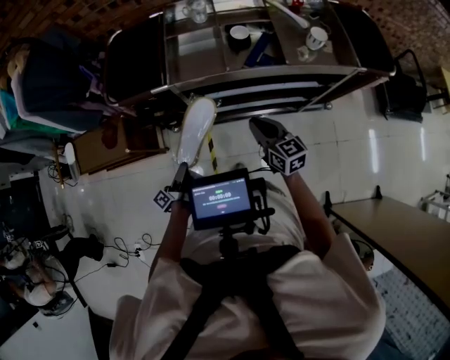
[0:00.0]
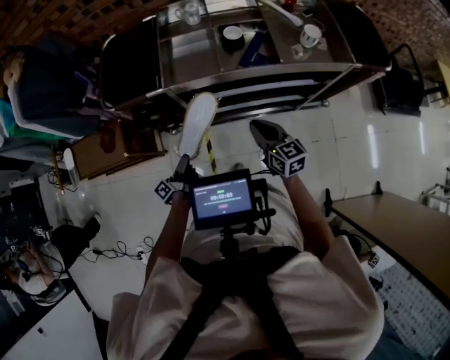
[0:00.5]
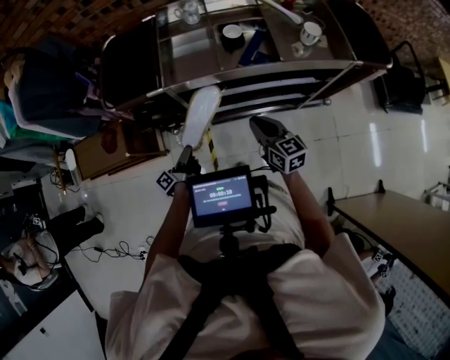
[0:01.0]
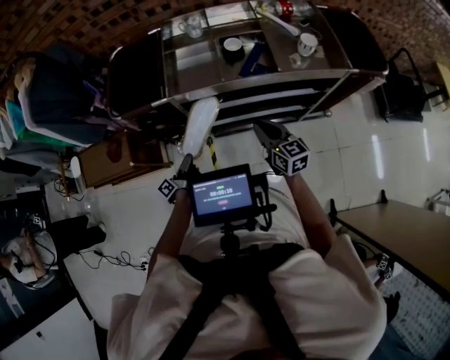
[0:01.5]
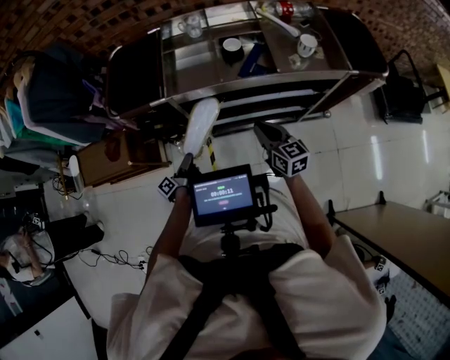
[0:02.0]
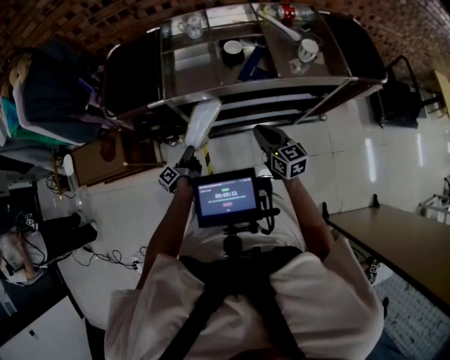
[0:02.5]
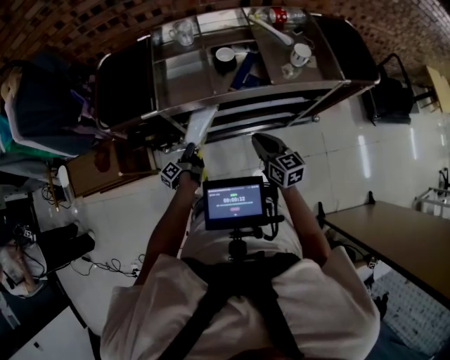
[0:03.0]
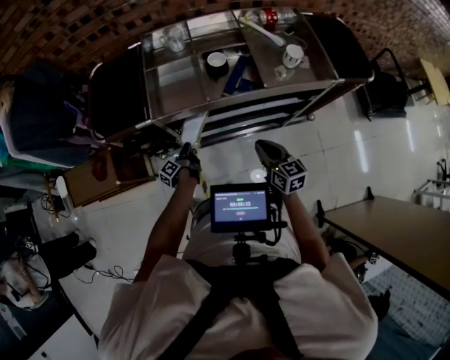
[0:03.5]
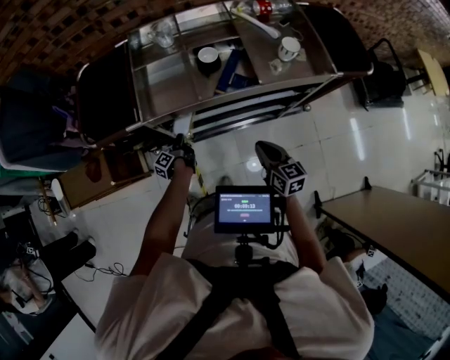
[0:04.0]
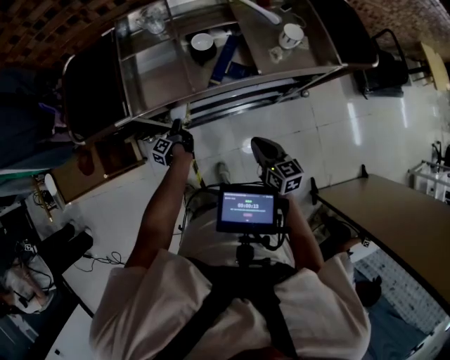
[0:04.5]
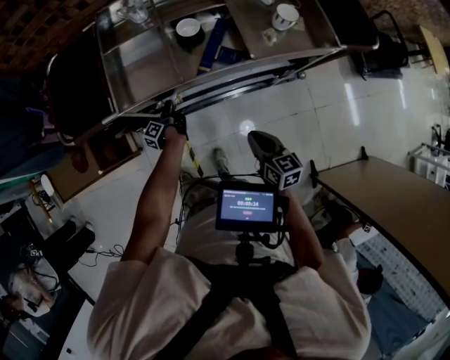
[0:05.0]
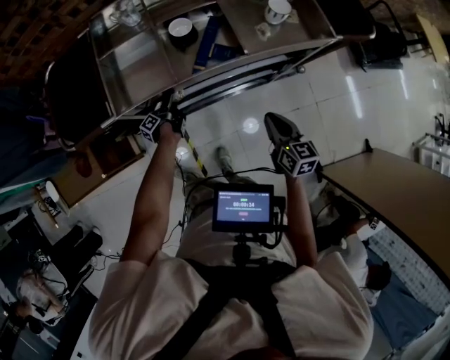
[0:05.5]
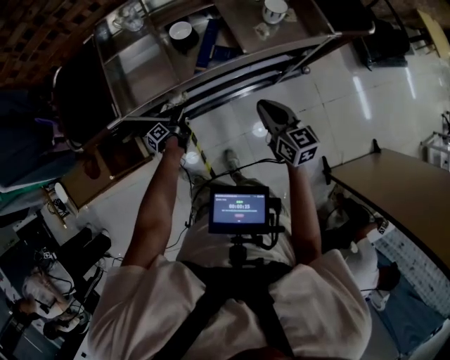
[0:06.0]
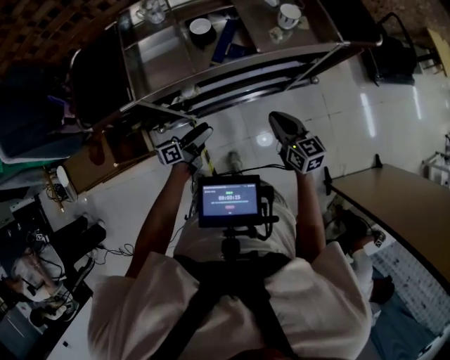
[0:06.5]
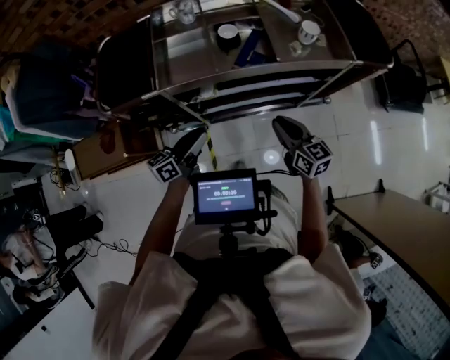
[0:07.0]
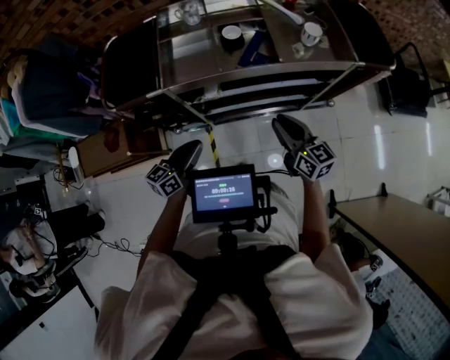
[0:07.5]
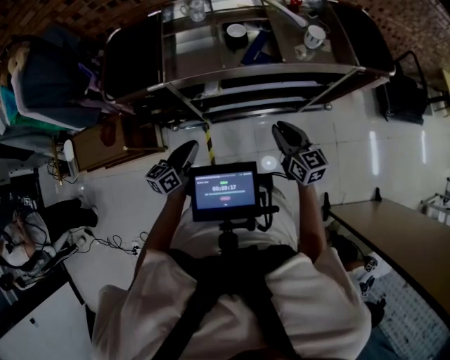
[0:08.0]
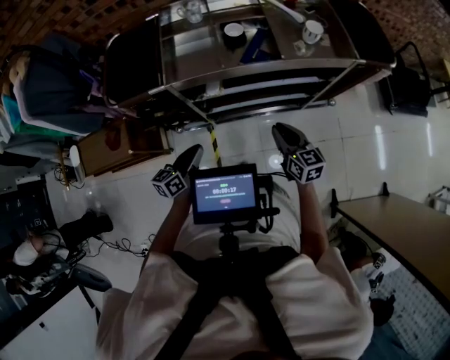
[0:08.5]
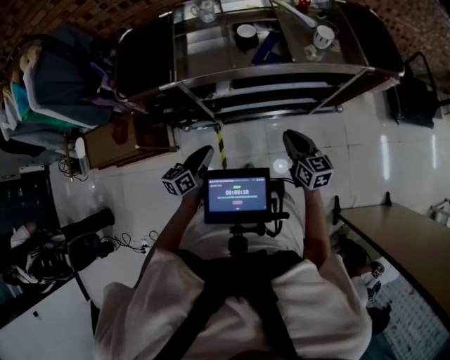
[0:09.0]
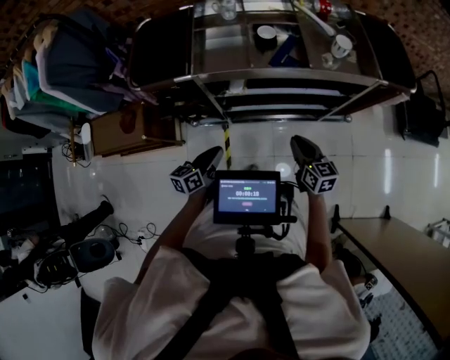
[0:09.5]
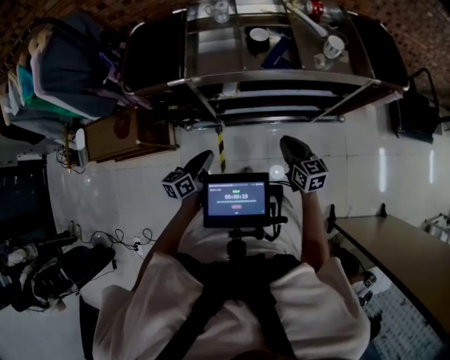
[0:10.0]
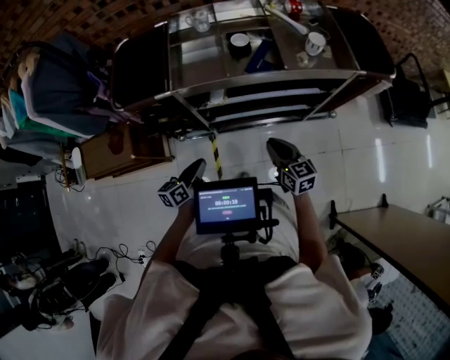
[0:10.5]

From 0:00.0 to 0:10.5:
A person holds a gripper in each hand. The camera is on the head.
From 0:02.0 to 0:04.0: The right gripper ends up approximately 10 cm from where it was.
From 0:06.5 to 0:08.5: The right gripper changes place by about 5 cm.

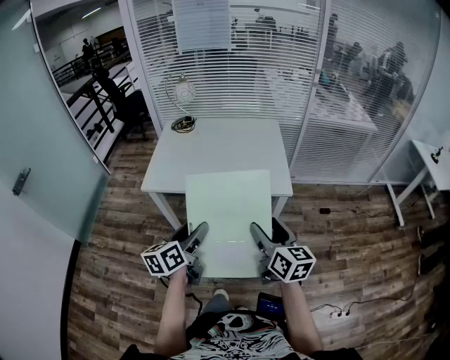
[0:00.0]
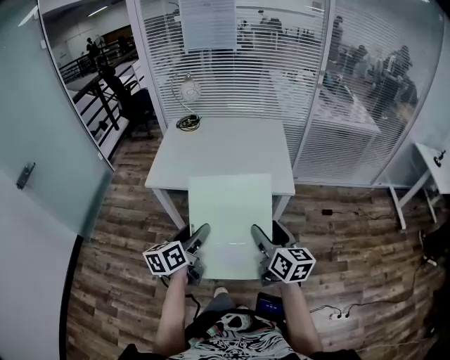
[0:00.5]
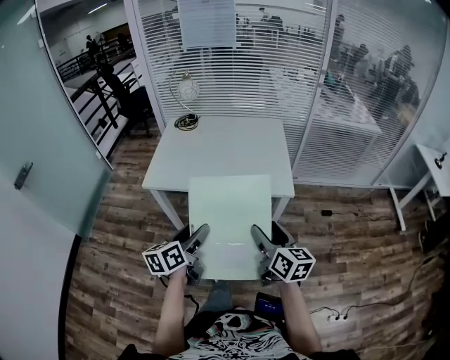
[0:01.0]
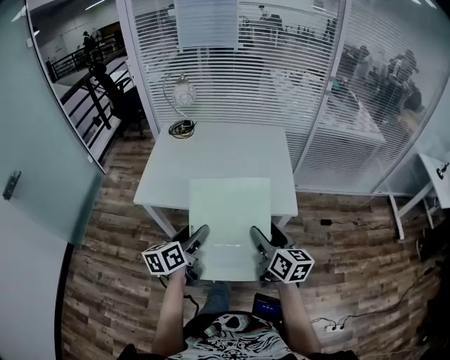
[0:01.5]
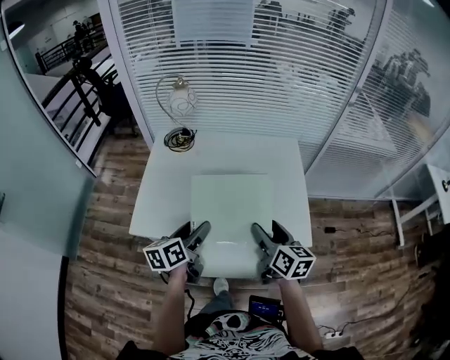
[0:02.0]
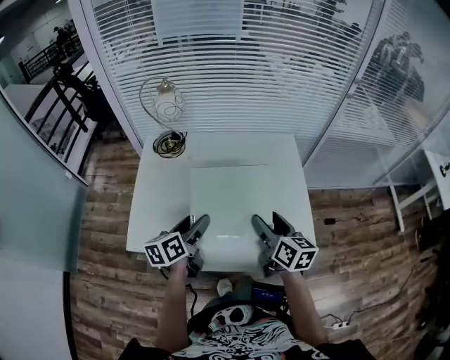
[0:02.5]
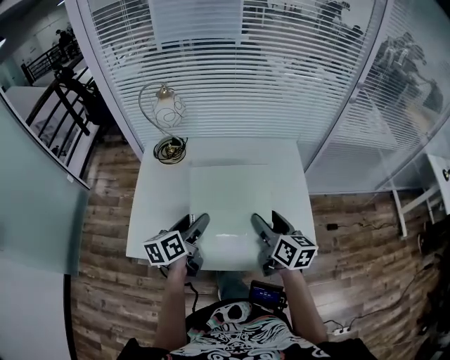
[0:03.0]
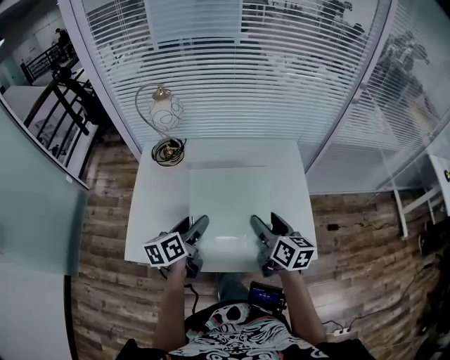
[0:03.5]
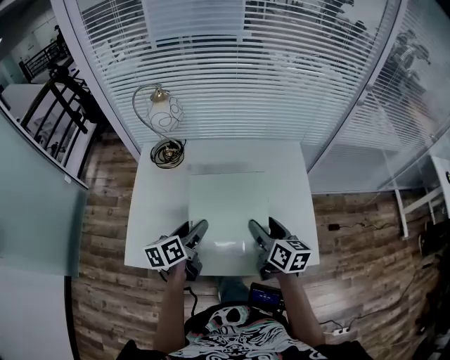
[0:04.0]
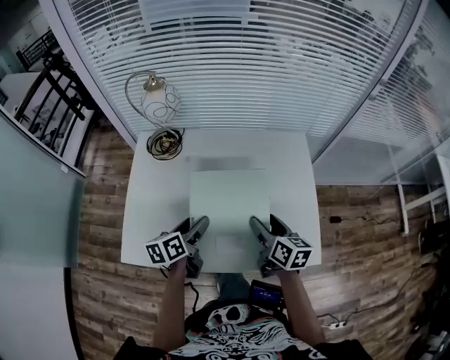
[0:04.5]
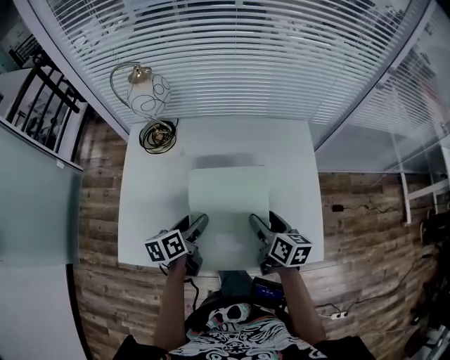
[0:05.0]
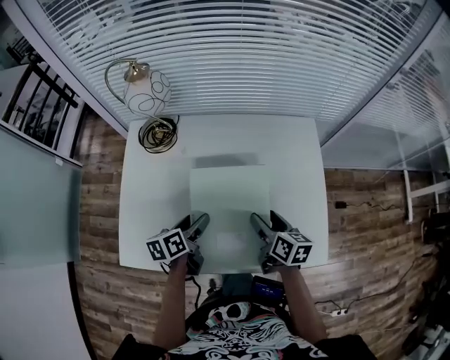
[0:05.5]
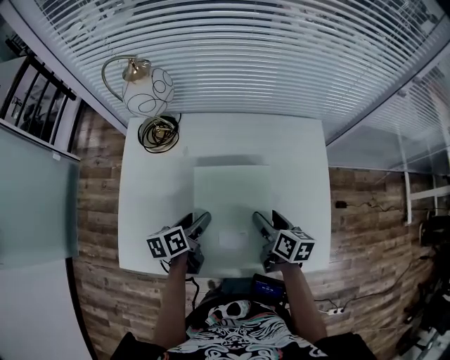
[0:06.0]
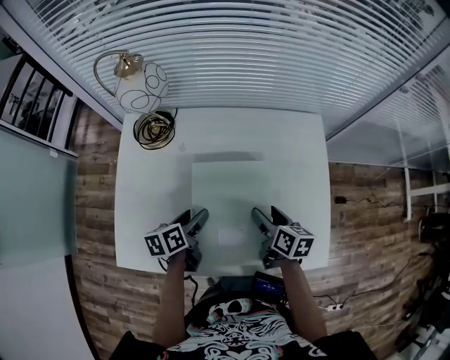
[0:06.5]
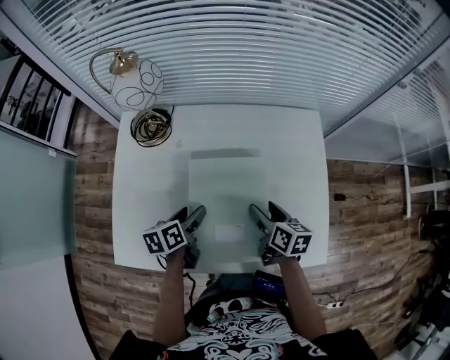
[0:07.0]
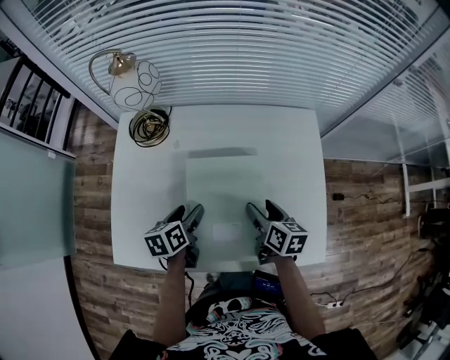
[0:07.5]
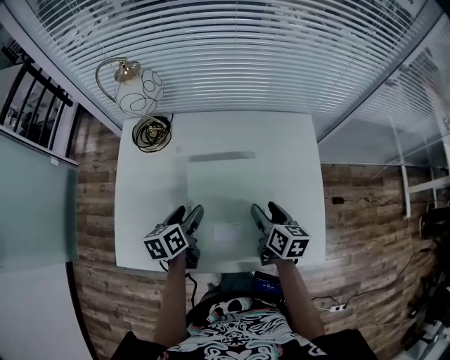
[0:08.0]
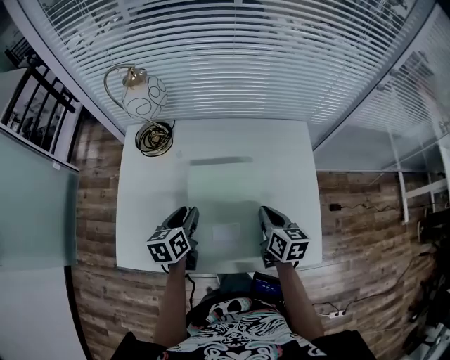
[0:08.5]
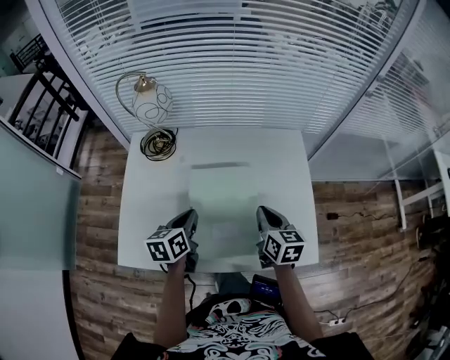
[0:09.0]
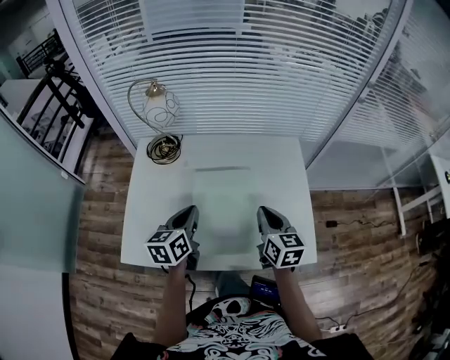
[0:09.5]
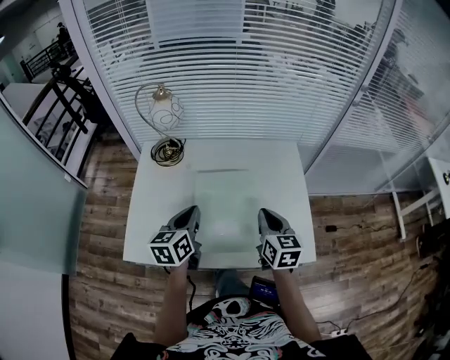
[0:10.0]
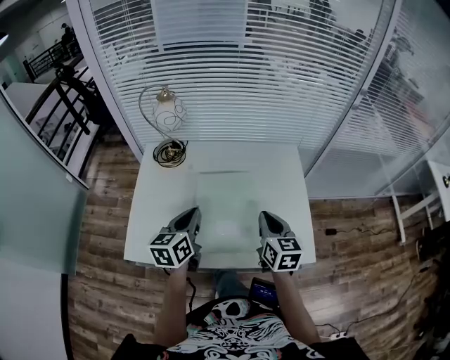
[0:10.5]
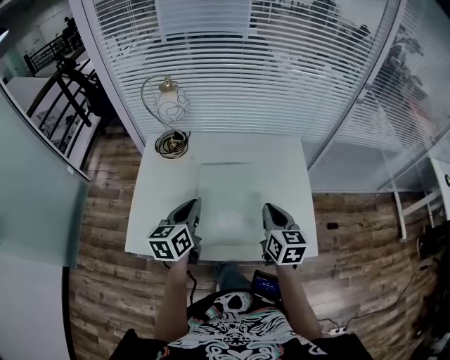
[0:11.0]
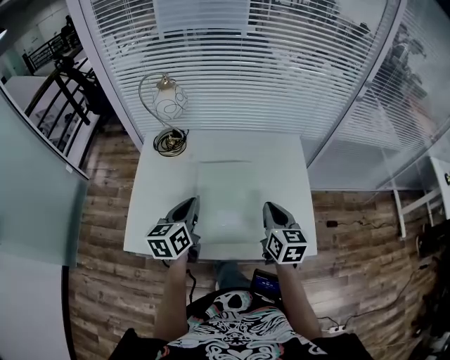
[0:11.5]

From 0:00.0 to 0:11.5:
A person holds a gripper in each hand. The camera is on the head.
From 0:00.0 to 0:02.0: Both grippers travel together forward, approximately 30 cm.
From 0:02.0 to 0:04.0: The grippers both shift forward by some 10 cm.
From 0:04.0 to 0:06.0: Both grippers move downward and forward, approximately 10 cm.
From 0:06.0 to 0:07.5: There are only small adjustments of the grippers.
From 0:07.5 to 0:09.5: Both grippers move upward, roughly 15 cm. The right gripper changes its angle by approximately 30 degrees, and closes up; the left gripper turns by some 20 degrees, and closes.
From 0:09.5 to 0:11.5: The grippers make only small movements.

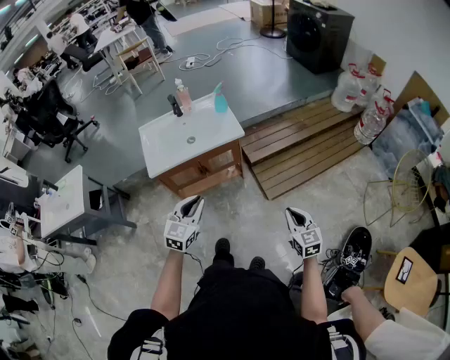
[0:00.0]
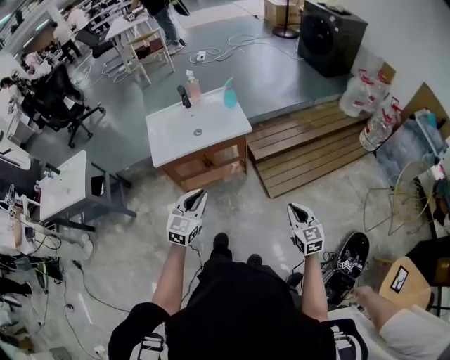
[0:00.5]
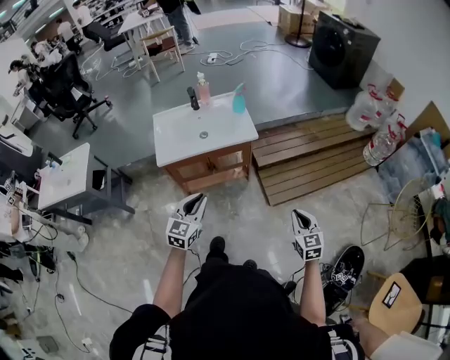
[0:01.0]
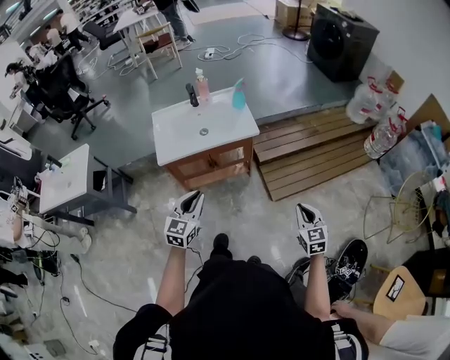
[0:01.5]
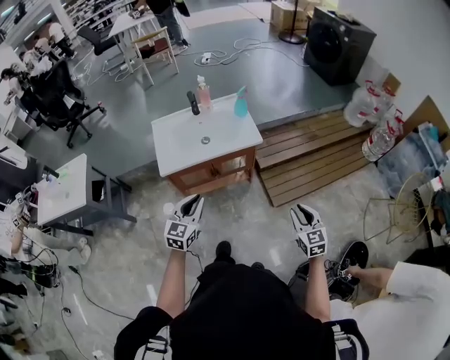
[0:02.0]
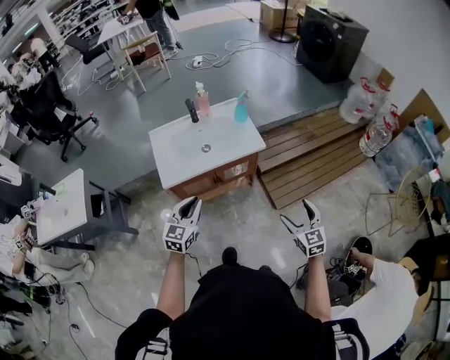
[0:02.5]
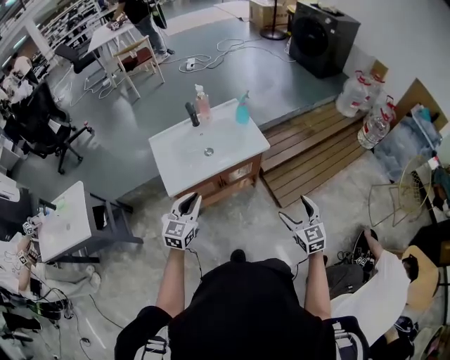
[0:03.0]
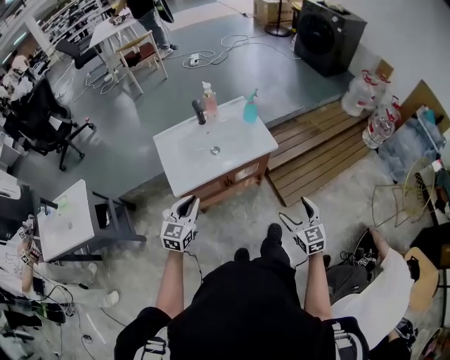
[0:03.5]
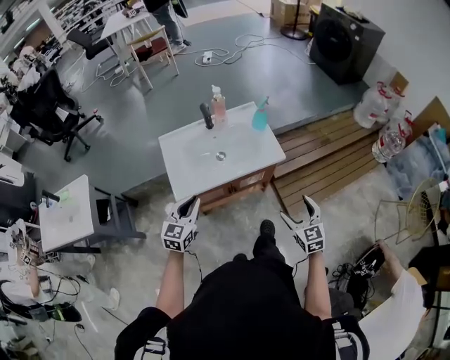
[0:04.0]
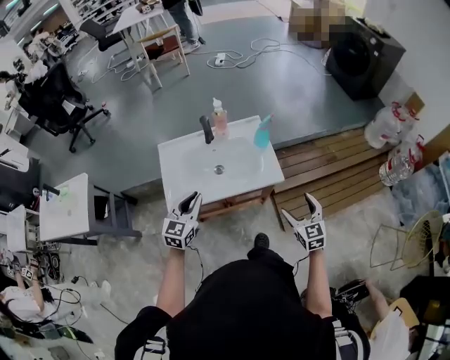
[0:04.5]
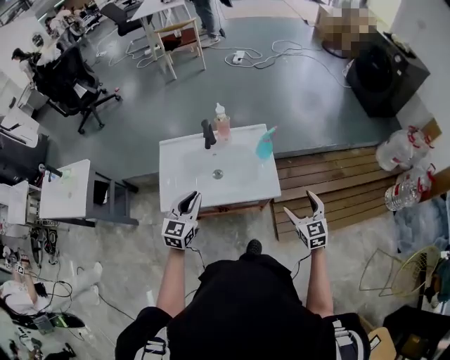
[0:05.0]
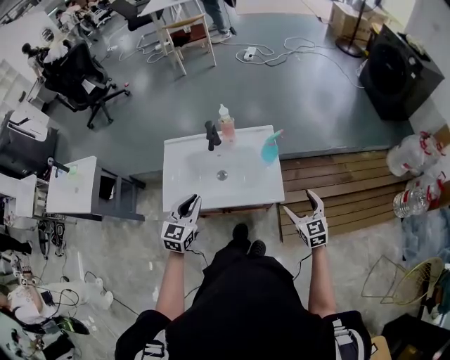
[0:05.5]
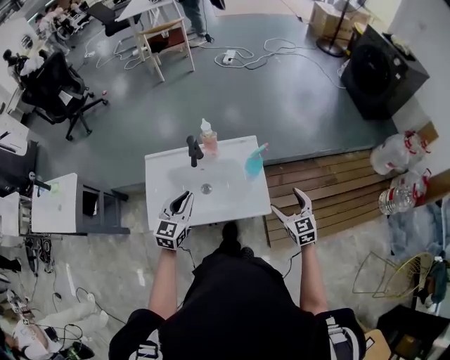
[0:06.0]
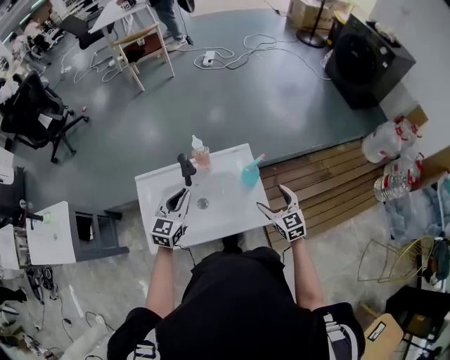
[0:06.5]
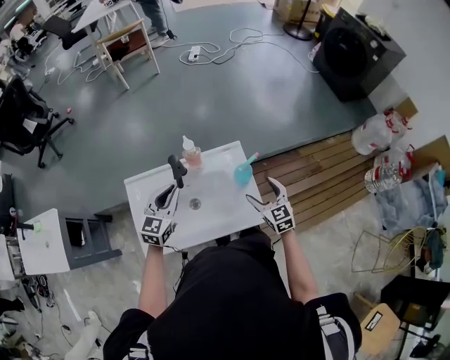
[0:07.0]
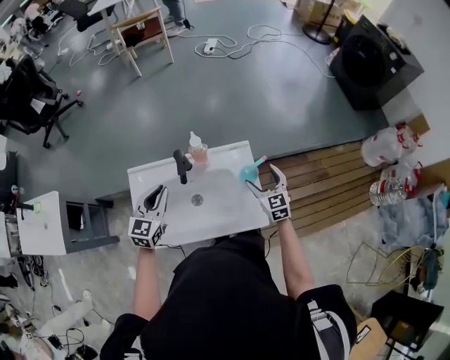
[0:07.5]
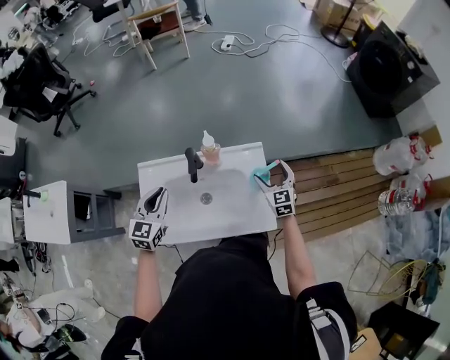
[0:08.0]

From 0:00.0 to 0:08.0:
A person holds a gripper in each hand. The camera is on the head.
From 0:00.0 to 0:02.0: The right gripper shifts about 10 cm forward and to the left, while the left gripper heads to the left and forward, covering approximately 15 cm.
From 0:02.0 to 0:04.0: The grippers both shift forward and to the left by approximately 25 cm. The right gripper opens.
From 0:04.0 to 0:06.0: The left gripper goes roughly 35 cm forward and to the right. The right gripper heads forward, covering approximately 40 cm.
From 0:06.0 to 0:08.0: The left gripper is displaced forward and to the left by about 20 cm, while the right gripper shifts approximately 25 cm forward.
